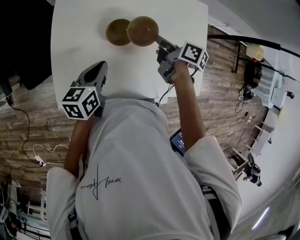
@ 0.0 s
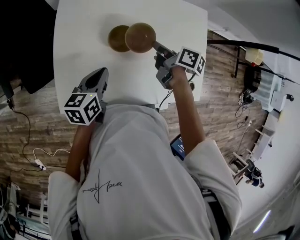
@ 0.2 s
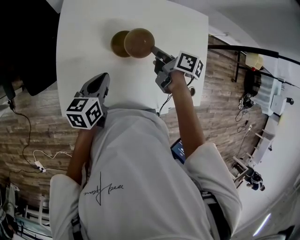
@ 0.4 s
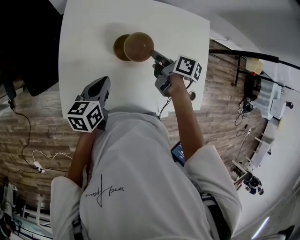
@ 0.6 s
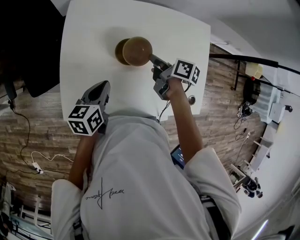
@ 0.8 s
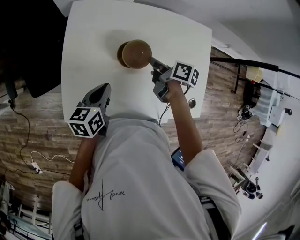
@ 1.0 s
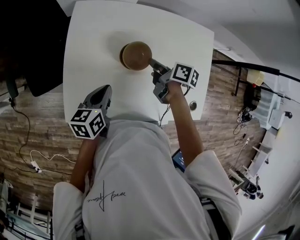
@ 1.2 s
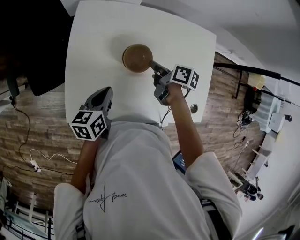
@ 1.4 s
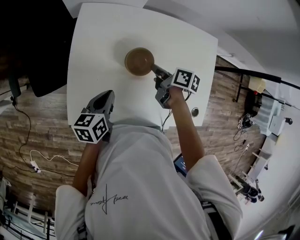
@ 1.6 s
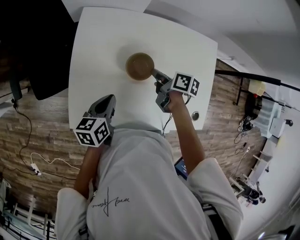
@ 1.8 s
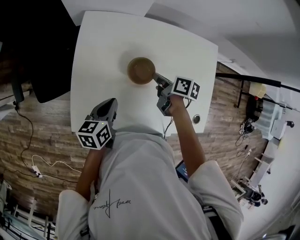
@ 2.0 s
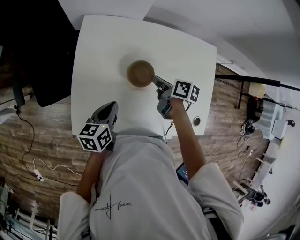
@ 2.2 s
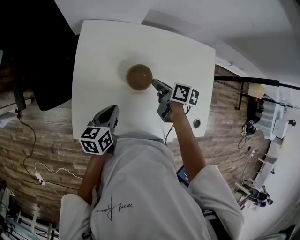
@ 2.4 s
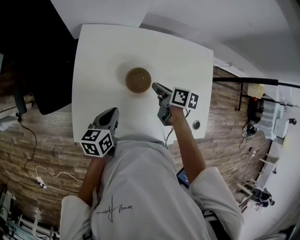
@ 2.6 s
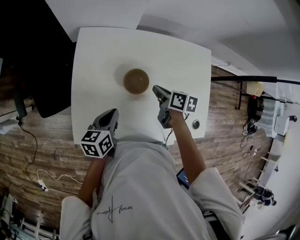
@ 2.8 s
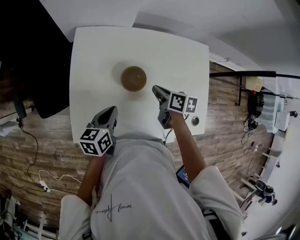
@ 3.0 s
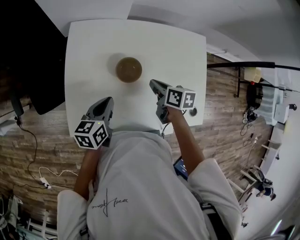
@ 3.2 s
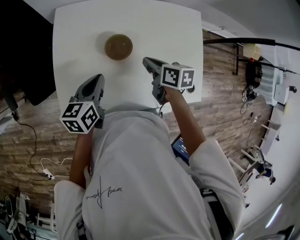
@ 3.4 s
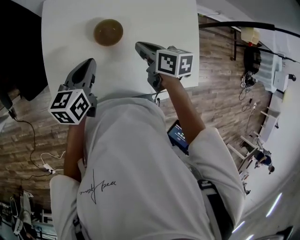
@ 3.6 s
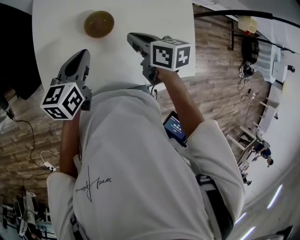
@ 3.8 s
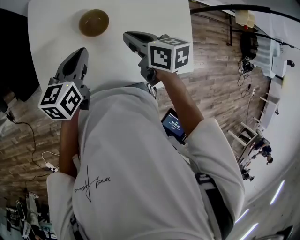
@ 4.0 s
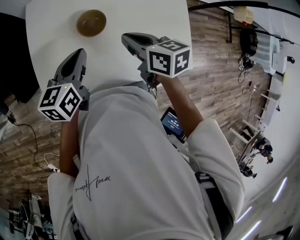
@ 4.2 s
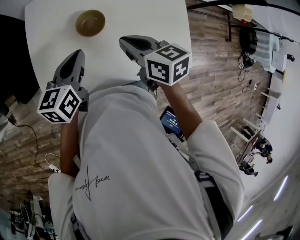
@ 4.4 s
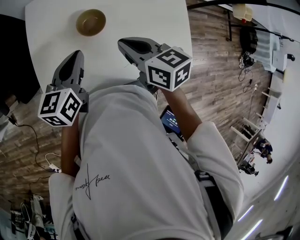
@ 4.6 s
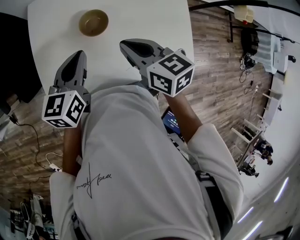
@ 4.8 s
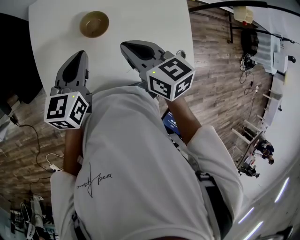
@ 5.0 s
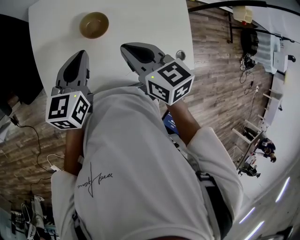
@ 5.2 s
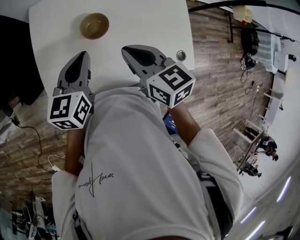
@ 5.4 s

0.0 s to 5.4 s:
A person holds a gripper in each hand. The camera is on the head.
0.0 to 1.4 s: The left gripper changes place by roughly 5 cm; the right gripper travels to the left by about 10 cm.
1.4 to 2.8 s: The grippers make only small movements.
2.8 to 4.0 s: The right gripper shifts about 10 cm upward and backward, while the left gripper moves upward, roughly 5 cm.
4.0 to 5.4 s: The right gripper travels upward by approximately 5 cm.

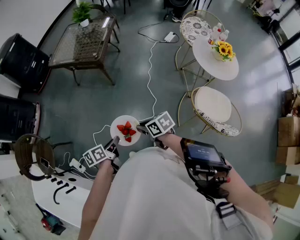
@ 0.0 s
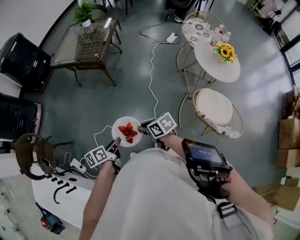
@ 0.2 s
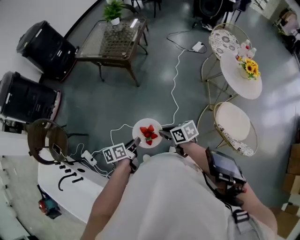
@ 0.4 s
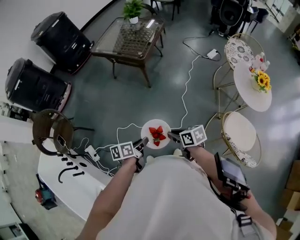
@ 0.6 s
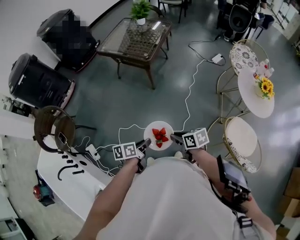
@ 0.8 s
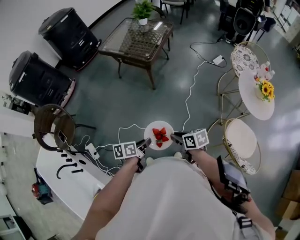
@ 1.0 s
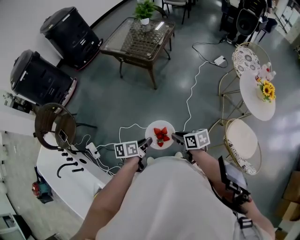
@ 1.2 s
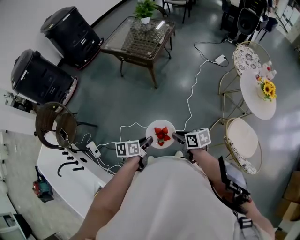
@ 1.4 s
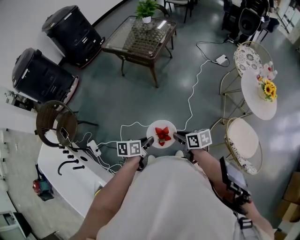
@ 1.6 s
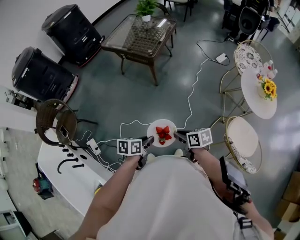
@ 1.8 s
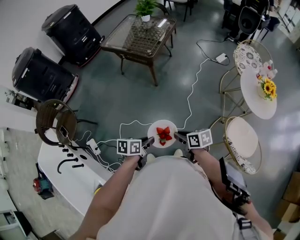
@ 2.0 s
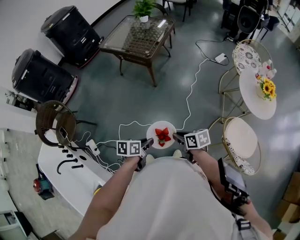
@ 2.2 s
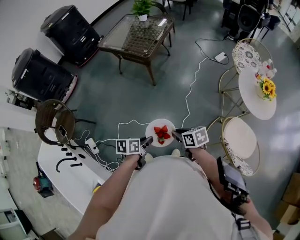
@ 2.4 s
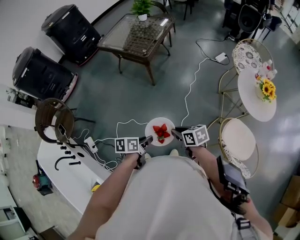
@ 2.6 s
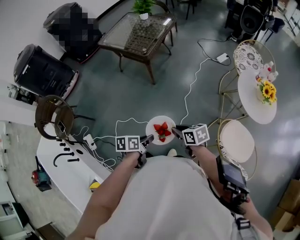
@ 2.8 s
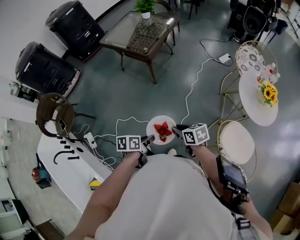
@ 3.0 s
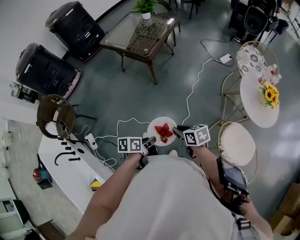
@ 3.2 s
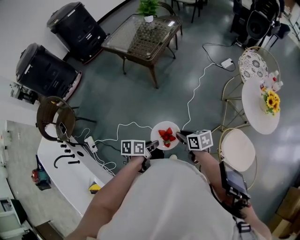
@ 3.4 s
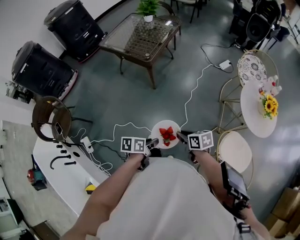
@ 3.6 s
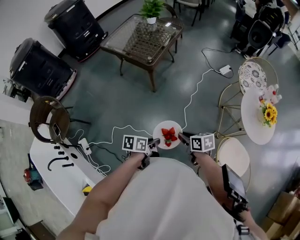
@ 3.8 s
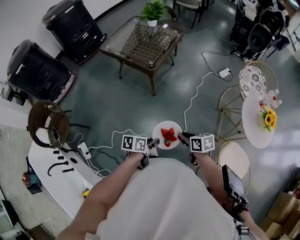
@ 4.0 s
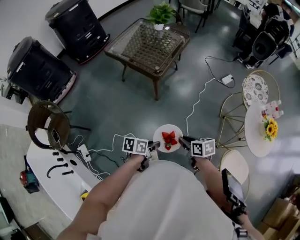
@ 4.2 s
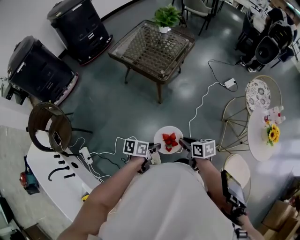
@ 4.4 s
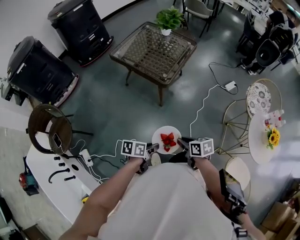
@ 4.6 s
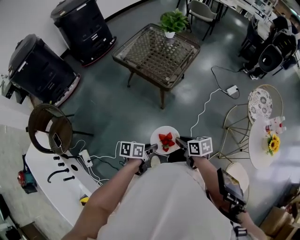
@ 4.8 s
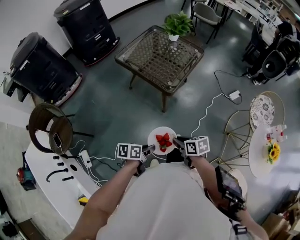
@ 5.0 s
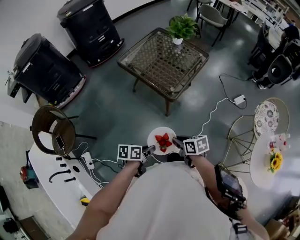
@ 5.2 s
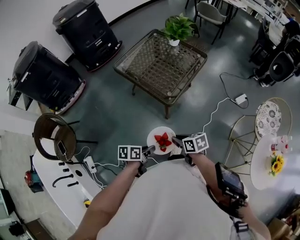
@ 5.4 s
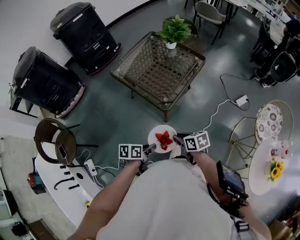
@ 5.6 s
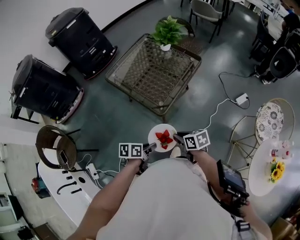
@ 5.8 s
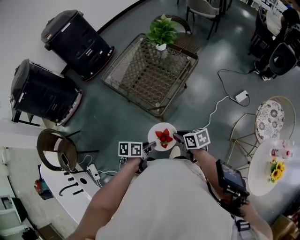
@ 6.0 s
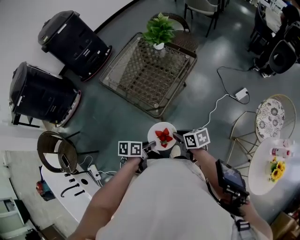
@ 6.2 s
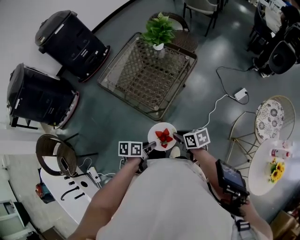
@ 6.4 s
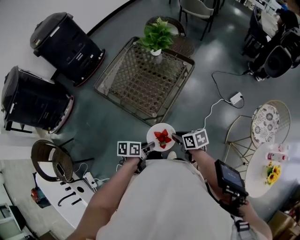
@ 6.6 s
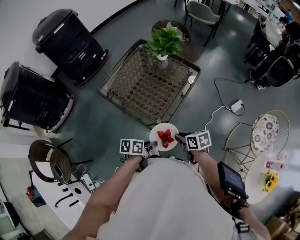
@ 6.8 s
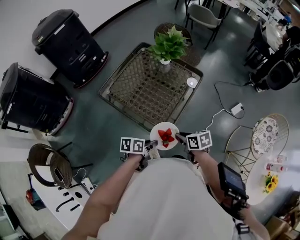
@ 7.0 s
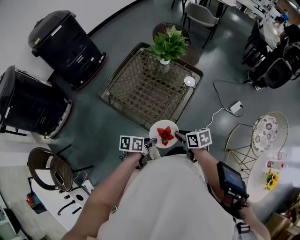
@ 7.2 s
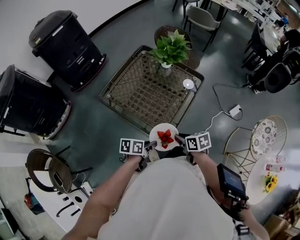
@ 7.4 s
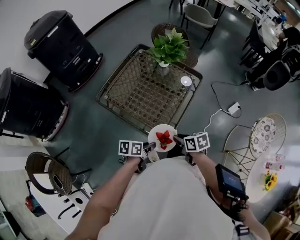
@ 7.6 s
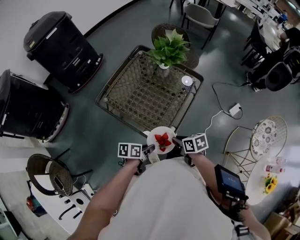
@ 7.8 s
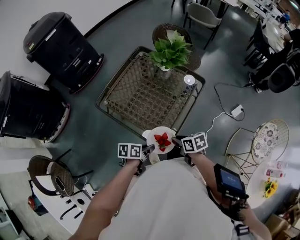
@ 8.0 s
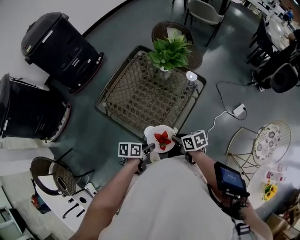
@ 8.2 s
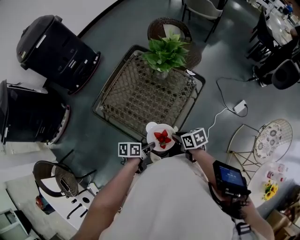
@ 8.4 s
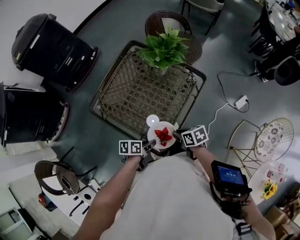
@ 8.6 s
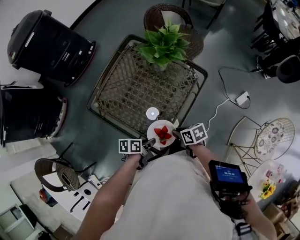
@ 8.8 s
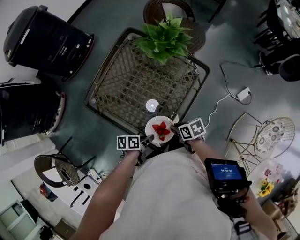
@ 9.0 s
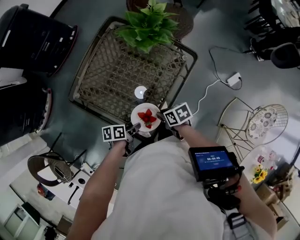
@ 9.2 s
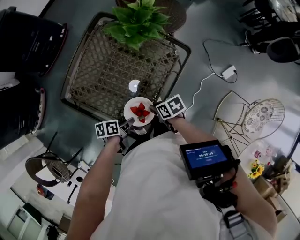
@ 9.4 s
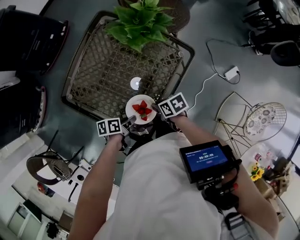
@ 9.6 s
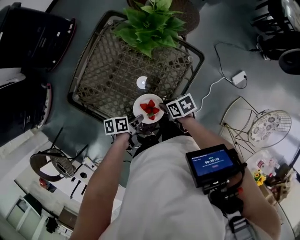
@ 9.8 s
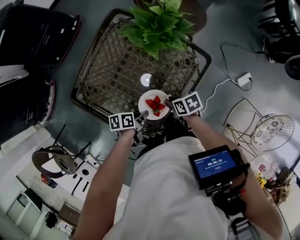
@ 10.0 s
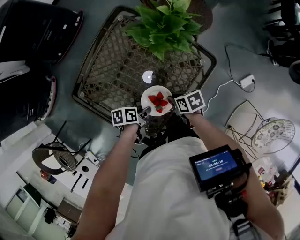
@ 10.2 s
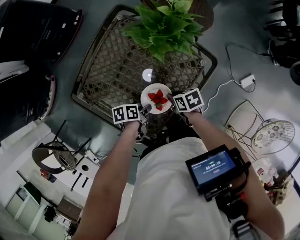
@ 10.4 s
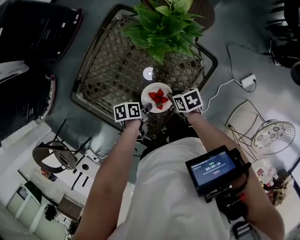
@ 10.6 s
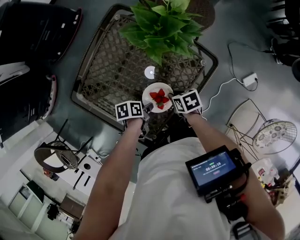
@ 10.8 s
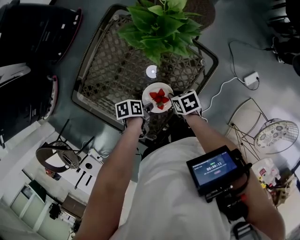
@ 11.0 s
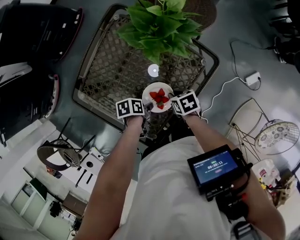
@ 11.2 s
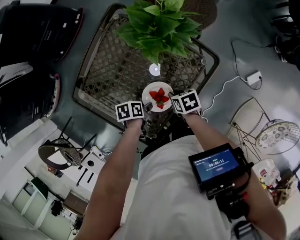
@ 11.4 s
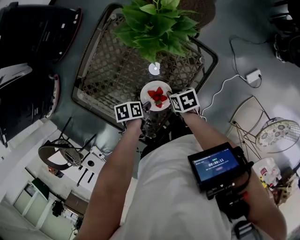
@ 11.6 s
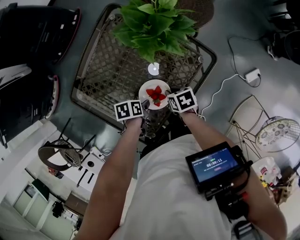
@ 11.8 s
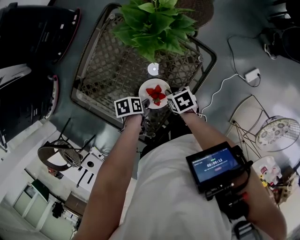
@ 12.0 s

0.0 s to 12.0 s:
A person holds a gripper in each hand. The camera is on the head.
1.6 to 3.0 s: The right gripper ends up some 10 cm from where it was.
3.0 to 4.4 s: The right gripper ends up roughly 20 cm from where it was.
4.4 to 6.0 s: The right gripper moves about 30 cm.
6.0 to 7.6 s: The right gripper changes place by about 20 cm.
7.6 to 9.0 s: The right gripper changes place by about 15 cm.
9.0 to 10.4 s: The right gripper changes place by roughly 15 cm.

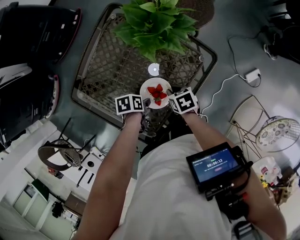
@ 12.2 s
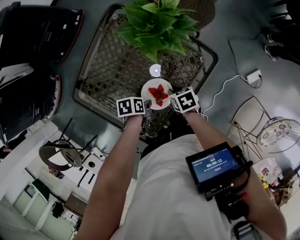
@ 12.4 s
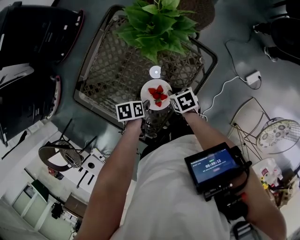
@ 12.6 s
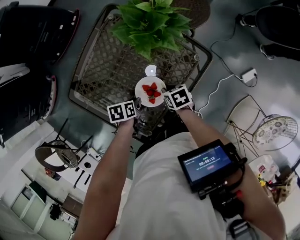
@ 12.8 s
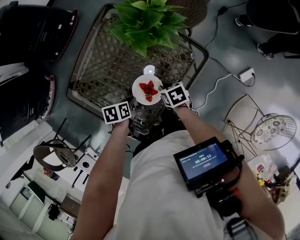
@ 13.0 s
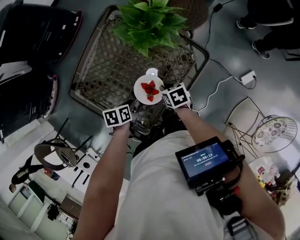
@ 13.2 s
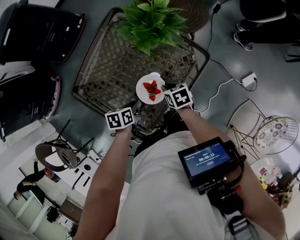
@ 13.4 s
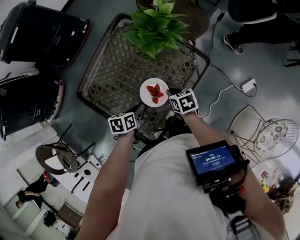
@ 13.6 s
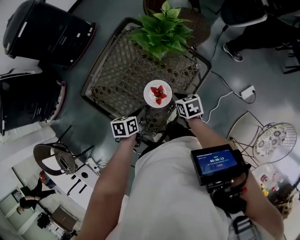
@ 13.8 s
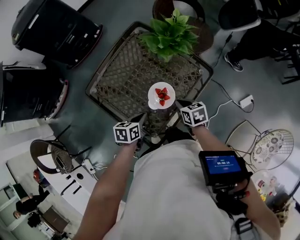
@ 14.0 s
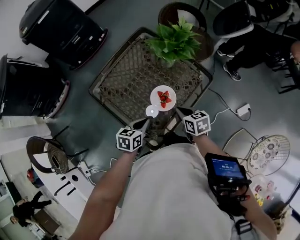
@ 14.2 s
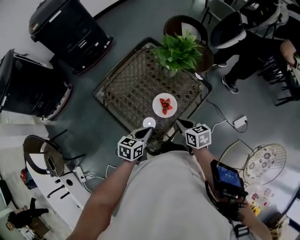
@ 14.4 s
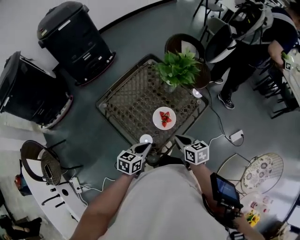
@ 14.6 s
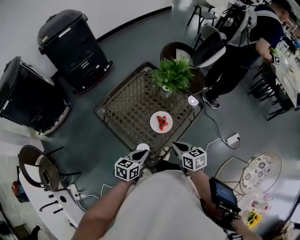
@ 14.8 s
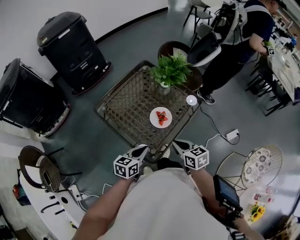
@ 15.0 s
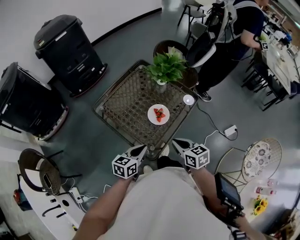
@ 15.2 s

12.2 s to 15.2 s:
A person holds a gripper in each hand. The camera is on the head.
12.2 to 13.8 s: The right gripper is displaced upward by about 5 cm.
13.8 to 15.2 s: The right gripper moves some 30 cm, and swivels roughly 20 degrees.

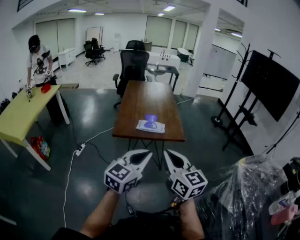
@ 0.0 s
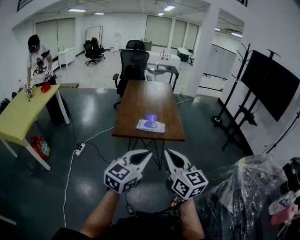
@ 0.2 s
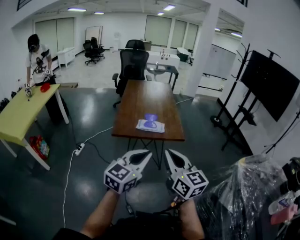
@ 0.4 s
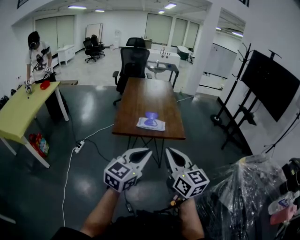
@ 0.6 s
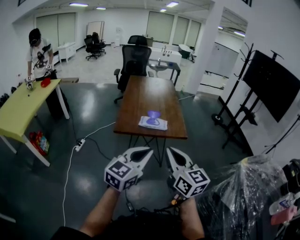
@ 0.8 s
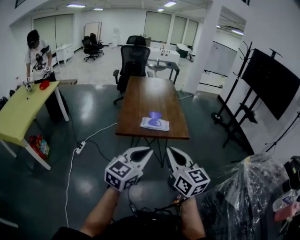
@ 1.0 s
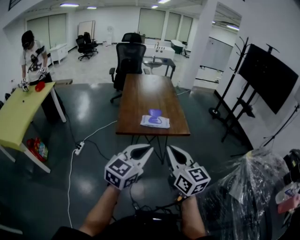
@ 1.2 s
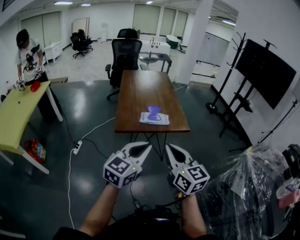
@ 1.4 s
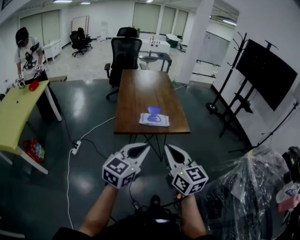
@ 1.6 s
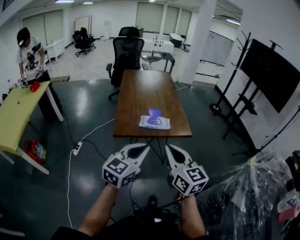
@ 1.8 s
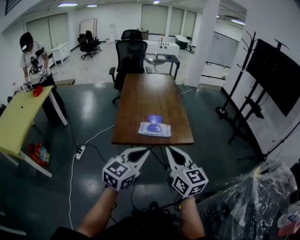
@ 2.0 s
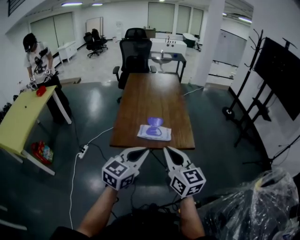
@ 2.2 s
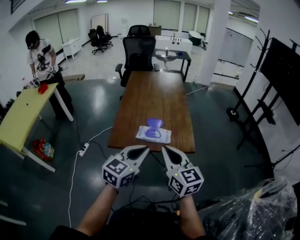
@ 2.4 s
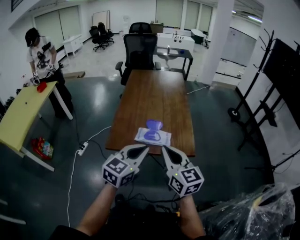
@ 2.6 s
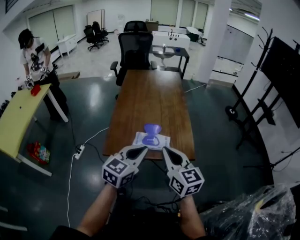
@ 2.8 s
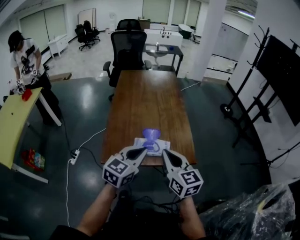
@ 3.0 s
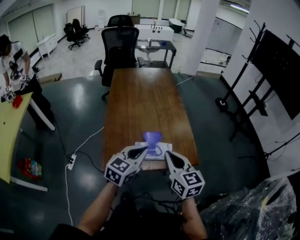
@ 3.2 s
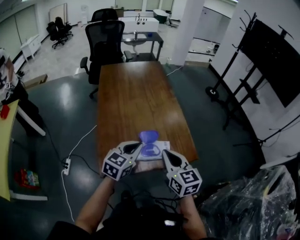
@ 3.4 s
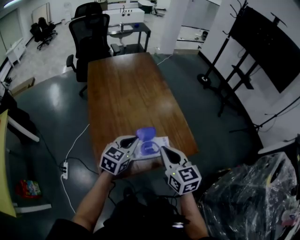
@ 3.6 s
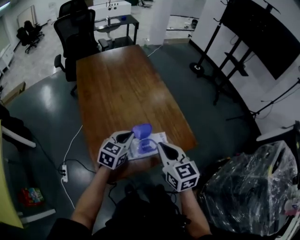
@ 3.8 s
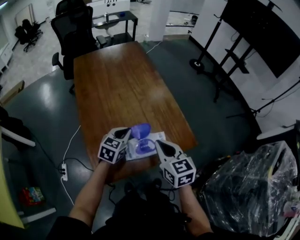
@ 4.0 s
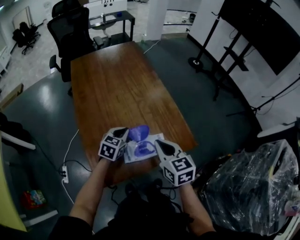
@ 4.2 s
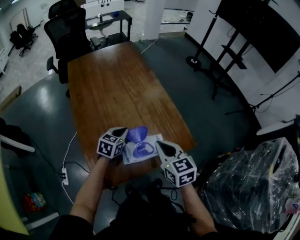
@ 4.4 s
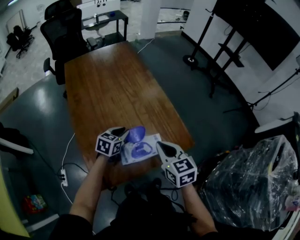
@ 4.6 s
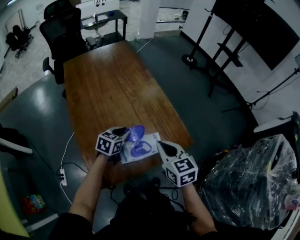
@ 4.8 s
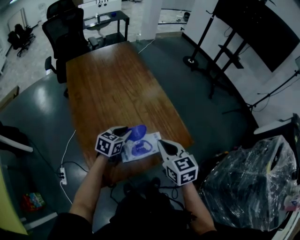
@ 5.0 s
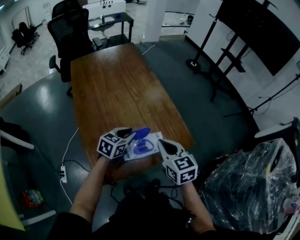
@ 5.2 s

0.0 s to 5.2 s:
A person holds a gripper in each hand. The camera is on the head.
0.0 to 1.8 s: Both grippers move forward and to the left, about 10 cm.
1.8 to 3.4 s: The two grippers go some 35 cm forward.
3.4 to 5.2 s: The left gripper travels downward and forward by some 15 cm, and changes its angle by approximately 20 degrees, while the right gripper moves forward, roughly 5 cm.
